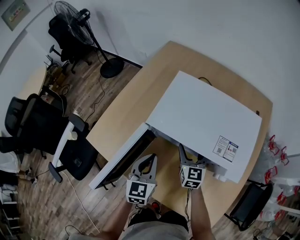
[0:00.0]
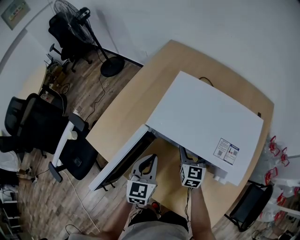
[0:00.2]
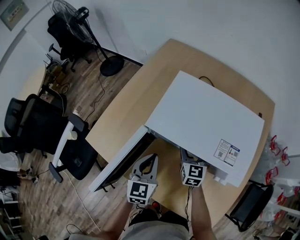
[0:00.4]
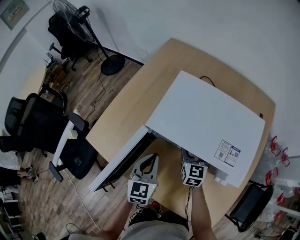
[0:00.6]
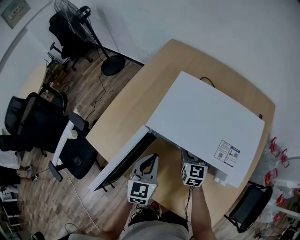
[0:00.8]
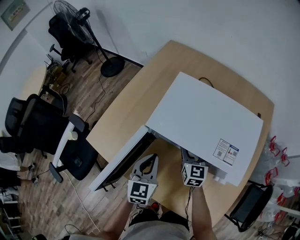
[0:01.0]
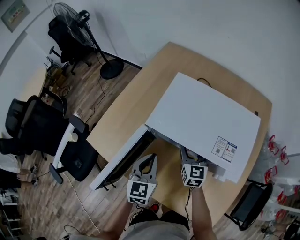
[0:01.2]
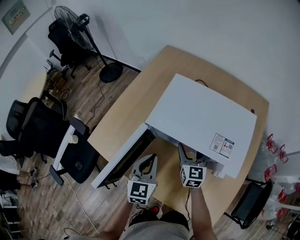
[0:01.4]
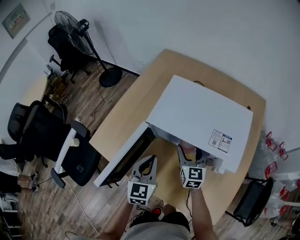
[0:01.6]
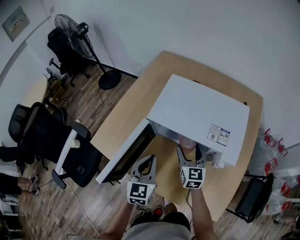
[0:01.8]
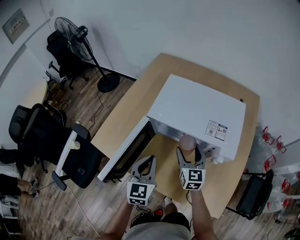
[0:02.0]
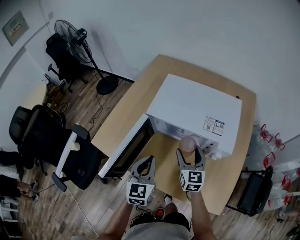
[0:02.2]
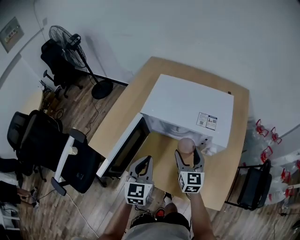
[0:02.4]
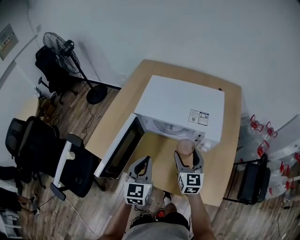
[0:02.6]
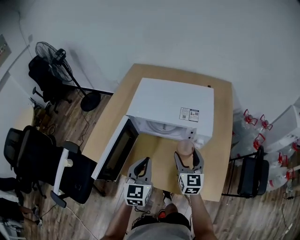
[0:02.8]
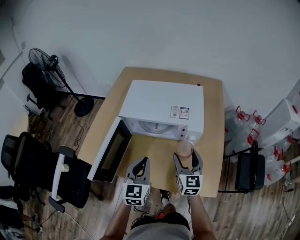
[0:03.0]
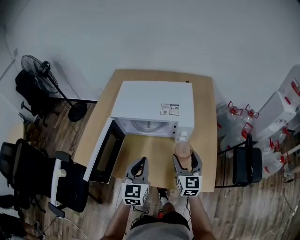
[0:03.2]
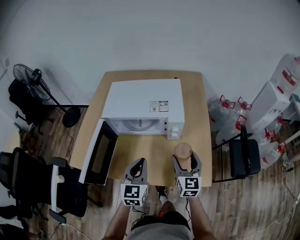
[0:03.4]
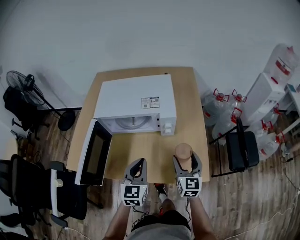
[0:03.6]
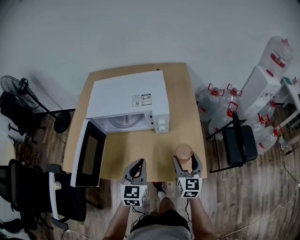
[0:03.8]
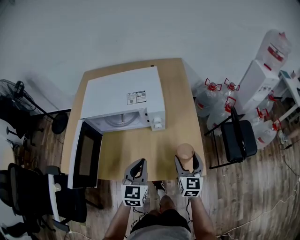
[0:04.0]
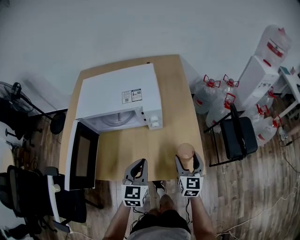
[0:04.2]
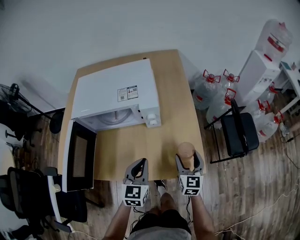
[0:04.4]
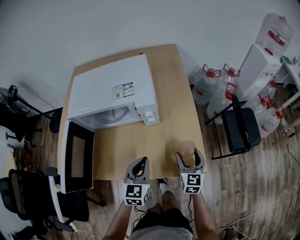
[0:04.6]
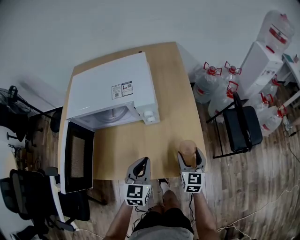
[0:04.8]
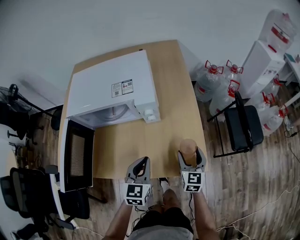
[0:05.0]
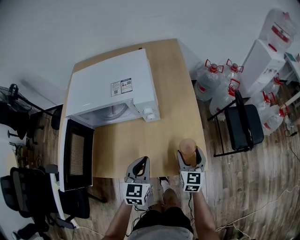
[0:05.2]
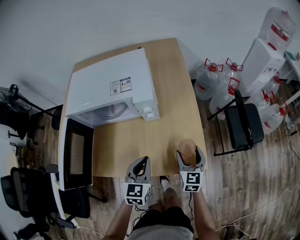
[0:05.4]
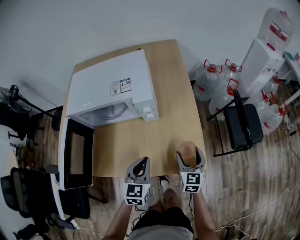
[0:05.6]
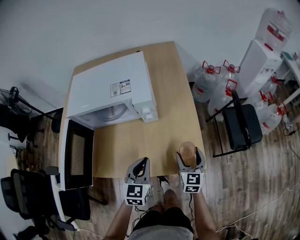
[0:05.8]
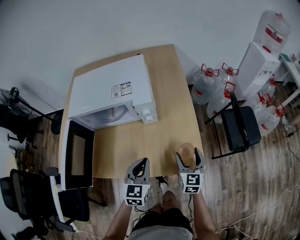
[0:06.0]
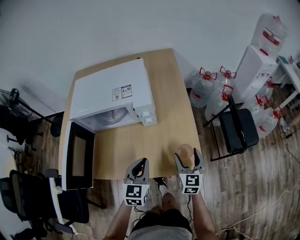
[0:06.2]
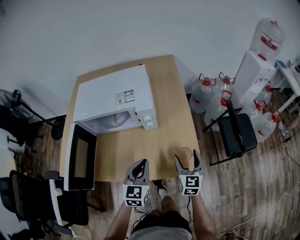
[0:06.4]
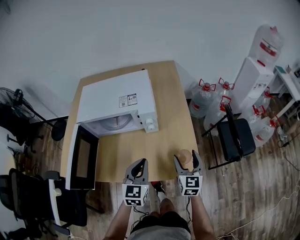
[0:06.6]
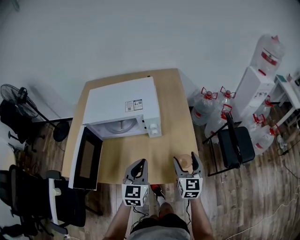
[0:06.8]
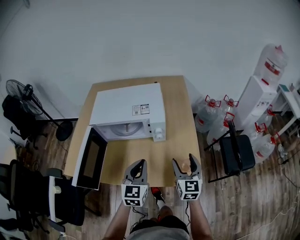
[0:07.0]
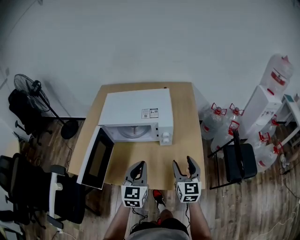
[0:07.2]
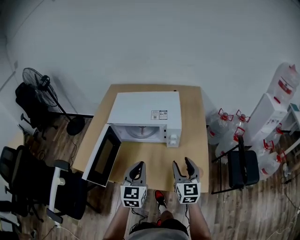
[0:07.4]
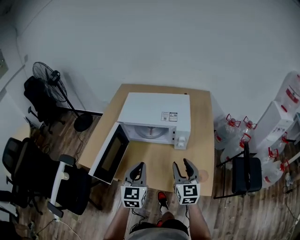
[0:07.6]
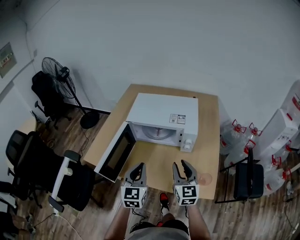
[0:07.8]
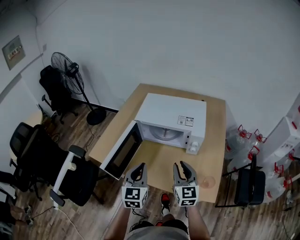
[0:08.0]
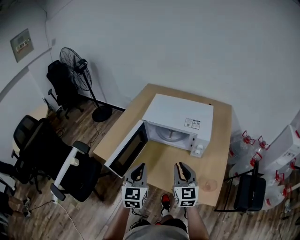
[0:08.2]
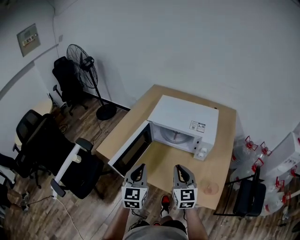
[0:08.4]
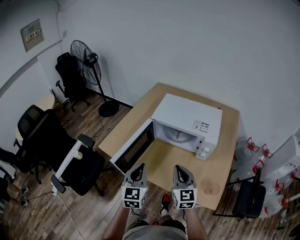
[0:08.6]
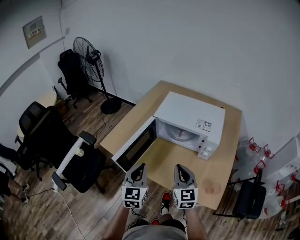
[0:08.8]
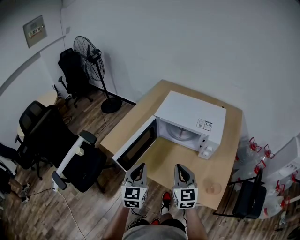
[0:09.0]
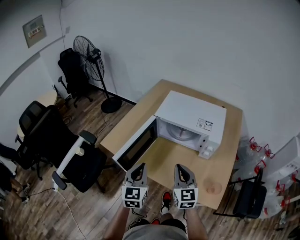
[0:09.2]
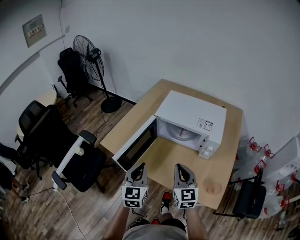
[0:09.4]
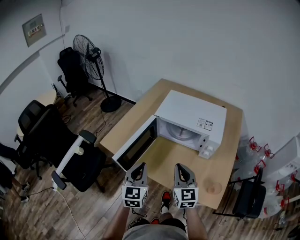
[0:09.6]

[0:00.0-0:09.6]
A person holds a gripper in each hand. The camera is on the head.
0:00.0 to 0:01.6: The grippers move only a little.
0:01.6 to 0:03.2: The left gripper heads backward and to the right, covering some 15 cm, while the right gripper goes about 25 cm backward and to the right, and swivels about 20 degrees.
0:03.2 to 0:04.8: Both grippers move to the right and downward, roughly 20 cm. The right gripper turns by about 20 degrees.
0:04.8 to 0:06.4: The right gripper moves upward, about 5 cm.
0:06.4 to 0:08.0: The right gripper ends up some 25 cm from where it was, swivels roughly 30 degrees, and closes. The left gripper changes place by about 20 cm, and turns by about 30 degrees.
0:08.0 to 0:09.6: Both grippers move to the left, approximately 5 cm.

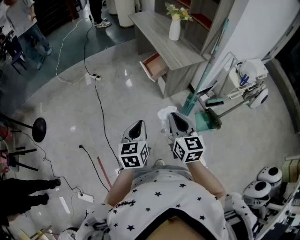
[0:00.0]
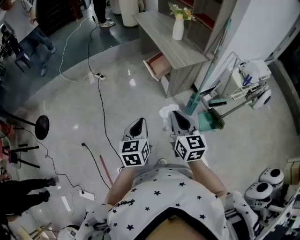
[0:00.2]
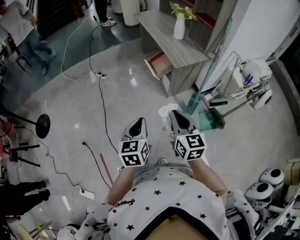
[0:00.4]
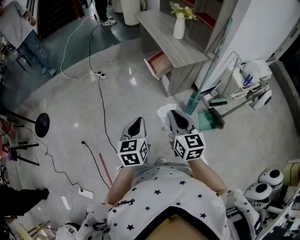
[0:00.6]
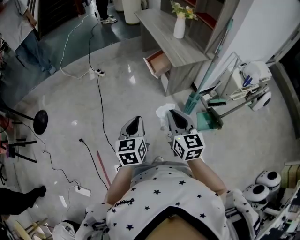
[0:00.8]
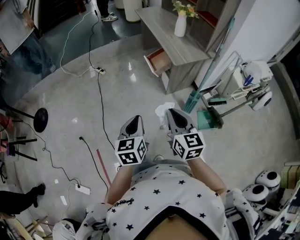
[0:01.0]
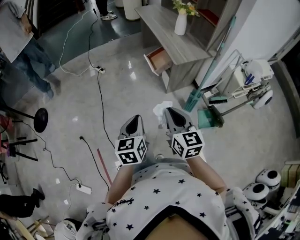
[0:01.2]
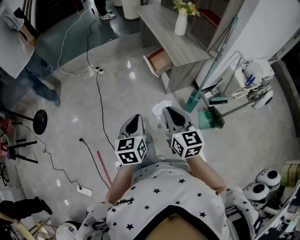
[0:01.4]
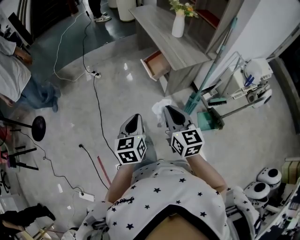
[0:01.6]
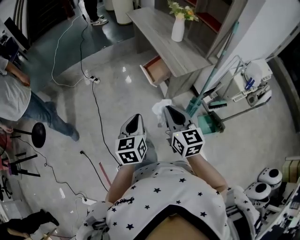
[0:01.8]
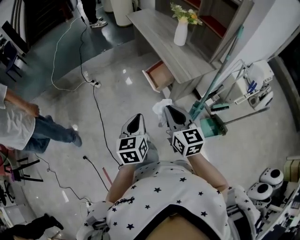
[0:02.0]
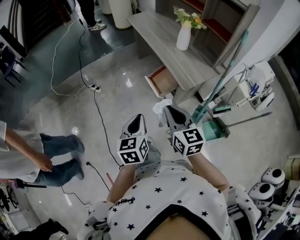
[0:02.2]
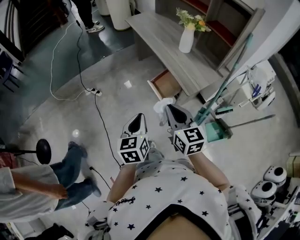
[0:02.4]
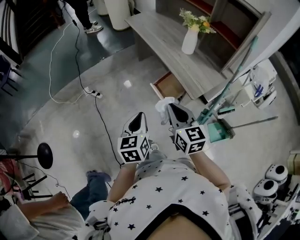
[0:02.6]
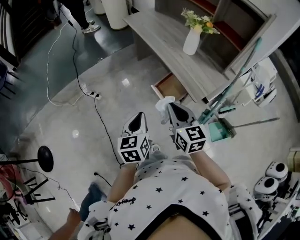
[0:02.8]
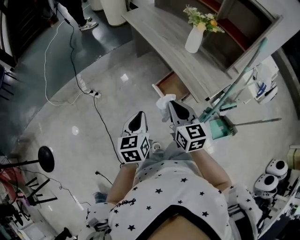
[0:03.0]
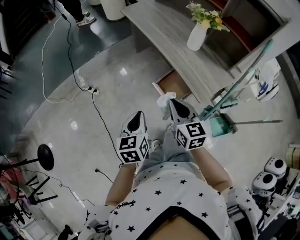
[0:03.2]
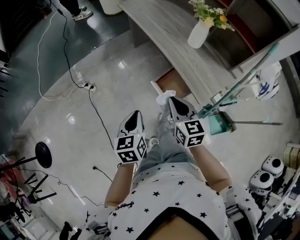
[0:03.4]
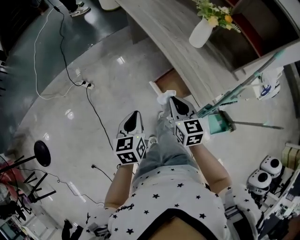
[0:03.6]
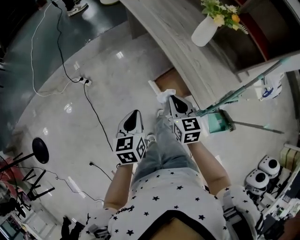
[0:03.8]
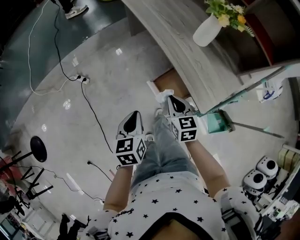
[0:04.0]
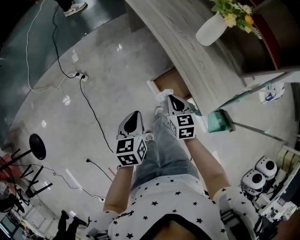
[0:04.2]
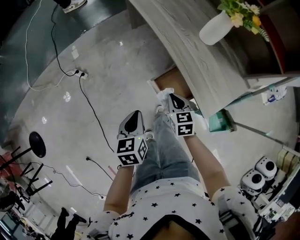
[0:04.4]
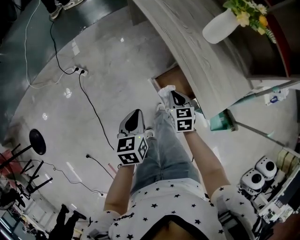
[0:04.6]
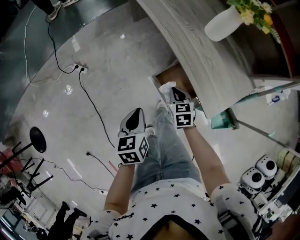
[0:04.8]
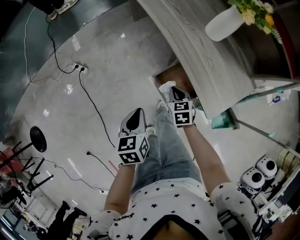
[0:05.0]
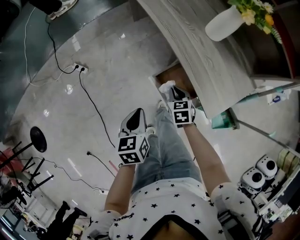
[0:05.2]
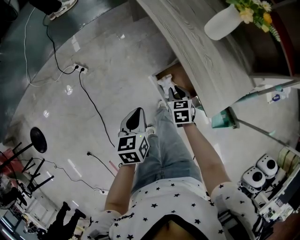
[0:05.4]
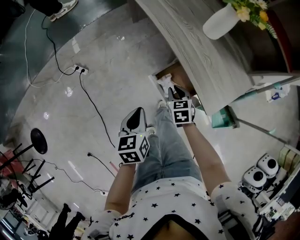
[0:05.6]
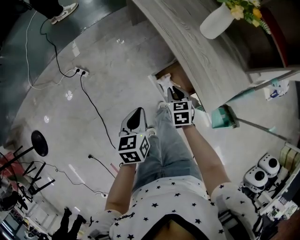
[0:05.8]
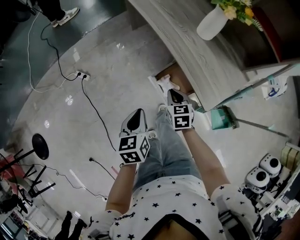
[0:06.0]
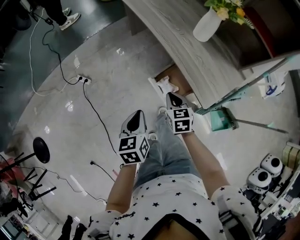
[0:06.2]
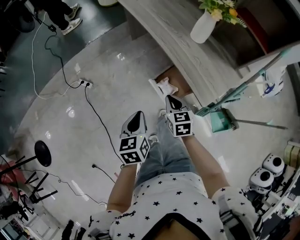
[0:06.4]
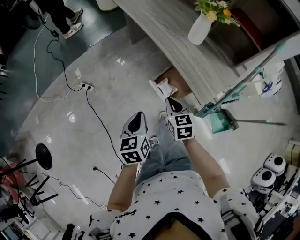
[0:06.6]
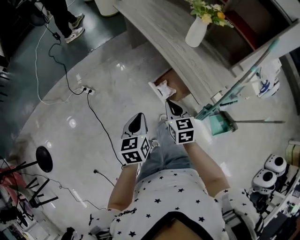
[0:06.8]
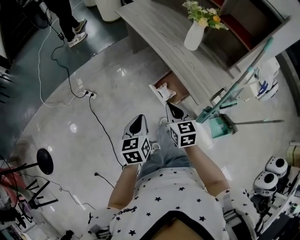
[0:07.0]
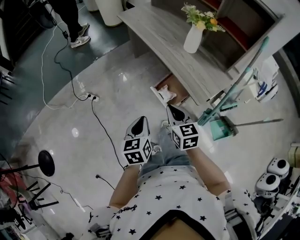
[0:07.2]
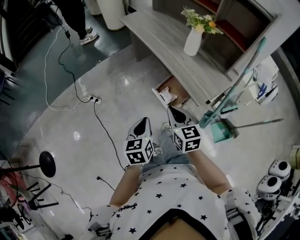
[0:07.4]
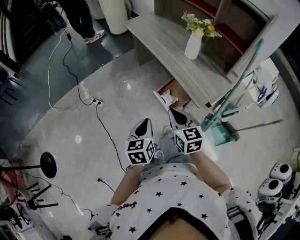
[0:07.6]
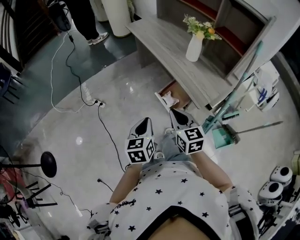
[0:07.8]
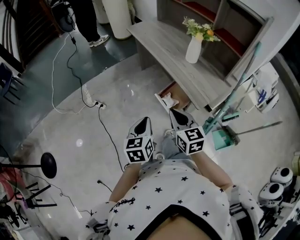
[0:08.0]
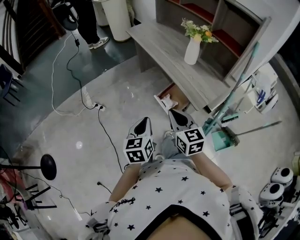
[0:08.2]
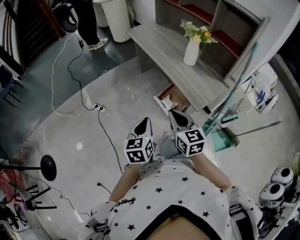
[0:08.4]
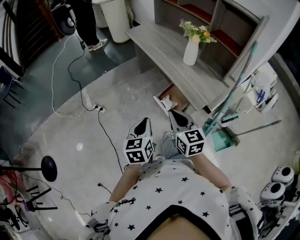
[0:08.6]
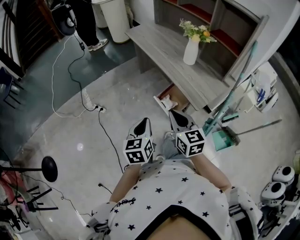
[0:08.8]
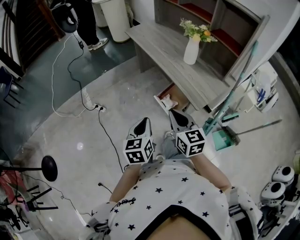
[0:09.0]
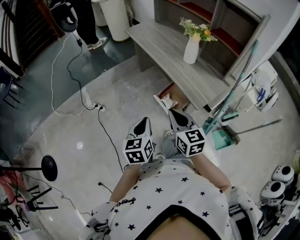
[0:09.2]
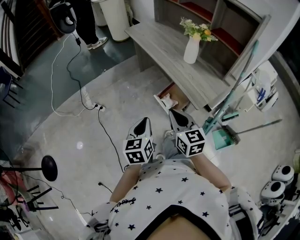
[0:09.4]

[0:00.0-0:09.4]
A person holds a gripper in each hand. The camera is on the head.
0:00.0 to 0:01.6: The grippers both shift forward by approximately 10 cm.
0:01.6 to 0:03.2: Both grippers travel together forward, some 35 cm.
0:03.2 to 0:04.8: The right gripper travels downward and forward by roughly 35 cm, and rotates some 30 degrees, while the left gripper shifts approximately 20 cm downward and forward.
0:04.8 to 0:06.2: The left gripper goes roughly 5 cm upward. Meanwhile the right gripper goes some 10 cm upward and backward.
0:06.2 to 0:07.8: The right gripper is displaced upward and backward by roughly 25 cm, and rotates roughly 20 degrees, while the left gripper is displaced upward and backward by about 15 cm.
0:07.8 to 0:09.4: The grippers make only small movements.

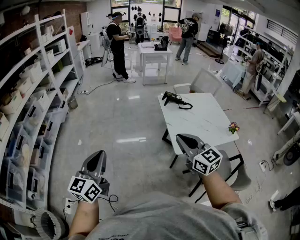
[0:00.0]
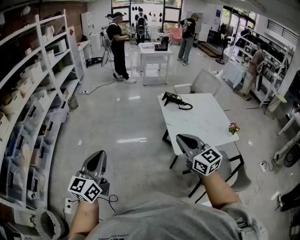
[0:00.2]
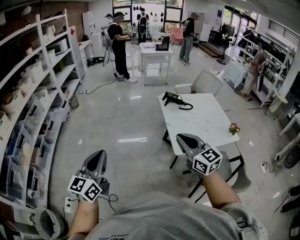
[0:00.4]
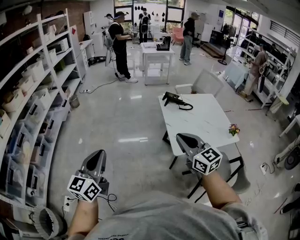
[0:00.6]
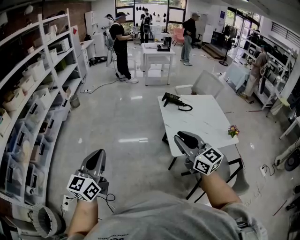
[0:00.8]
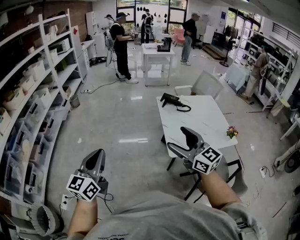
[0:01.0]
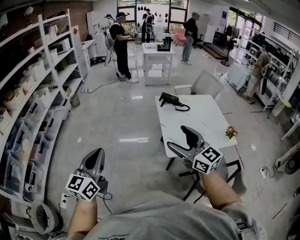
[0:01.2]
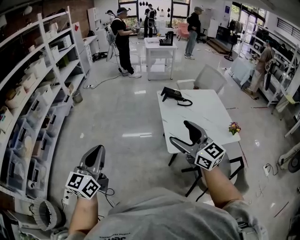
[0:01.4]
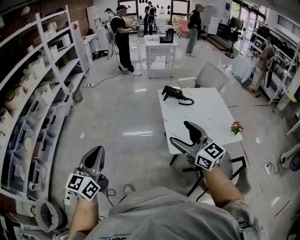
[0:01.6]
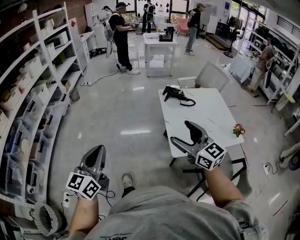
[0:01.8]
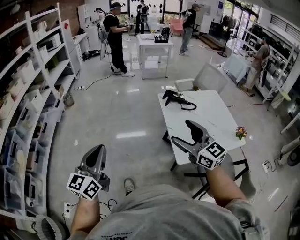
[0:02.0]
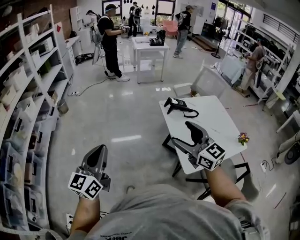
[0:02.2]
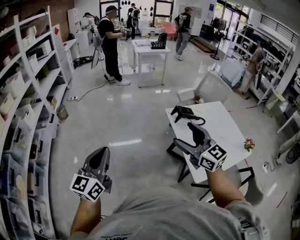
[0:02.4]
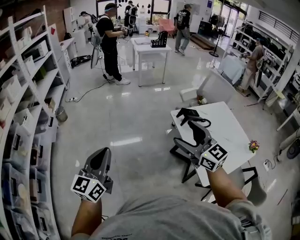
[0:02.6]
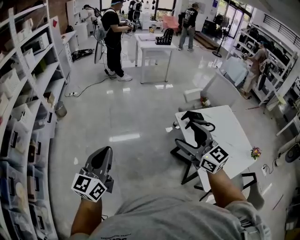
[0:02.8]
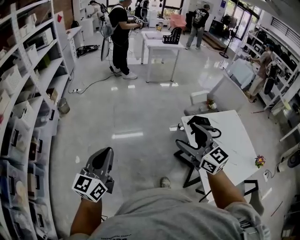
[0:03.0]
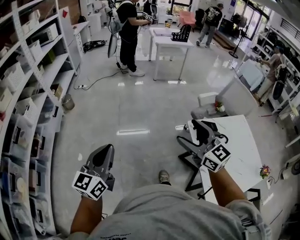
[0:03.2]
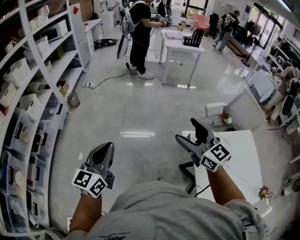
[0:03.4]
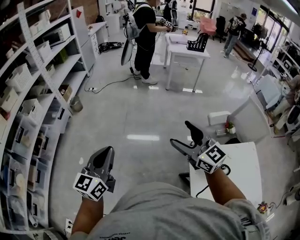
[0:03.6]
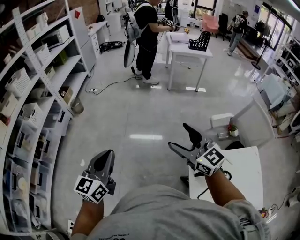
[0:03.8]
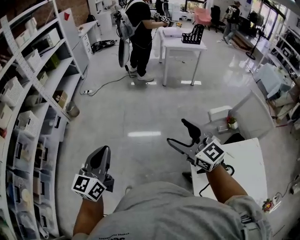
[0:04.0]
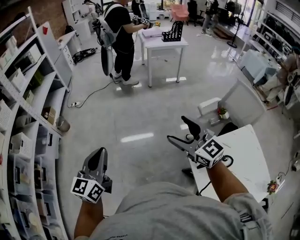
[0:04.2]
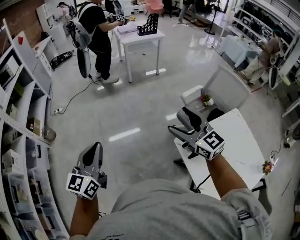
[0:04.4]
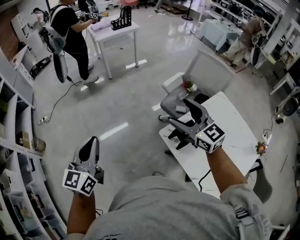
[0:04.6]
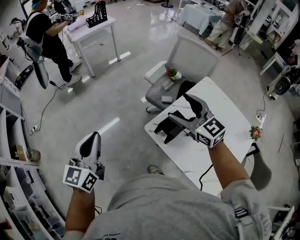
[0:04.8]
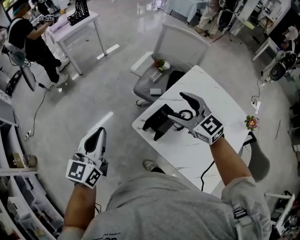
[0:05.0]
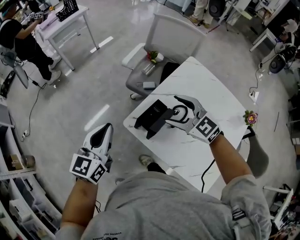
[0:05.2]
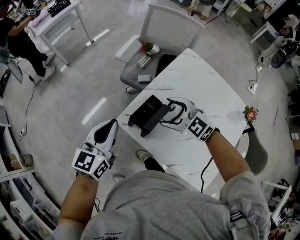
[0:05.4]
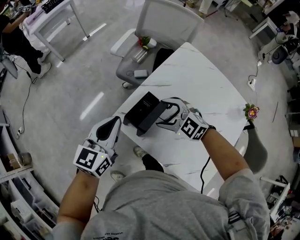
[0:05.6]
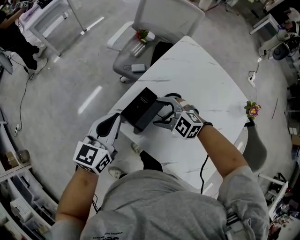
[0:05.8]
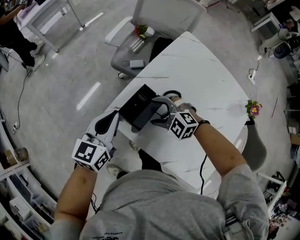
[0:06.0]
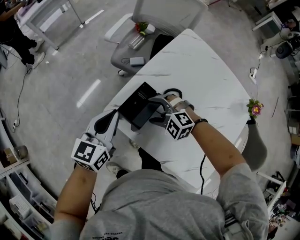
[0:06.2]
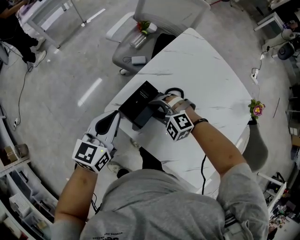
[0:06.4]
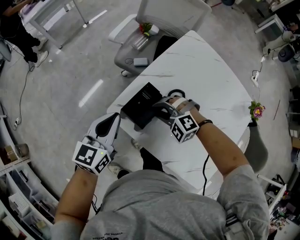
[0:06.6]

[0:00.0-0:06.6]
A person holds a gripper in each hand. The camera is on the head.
0:00.0 to 0:01.6: Both grippers move to the right, approximately 10 cm. The right gripper opens.
0:01.6 to 0:03.2: The pair of grippers is taken forward, some 50 cm.
0:03.2 to 0:05.0: The left gripper changes place by approximately 50 cm, and rotates roughly 40 degrees; the right gripper changes place by about 40 cm, and changes its angle by about 30 degrees.
0:05.0 to 0:06.6: The left gripper shifts some 25 cm to the right and downward. The right gripper is displaced downward by about 25 cm, tips its fingers downward by approximately 30 degrees, and closes.
